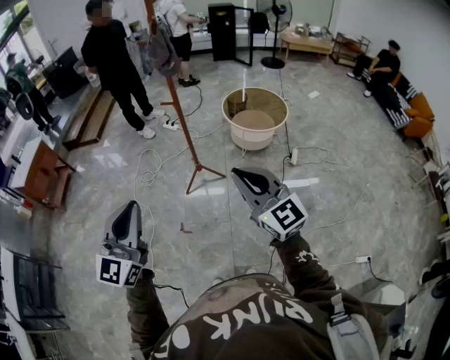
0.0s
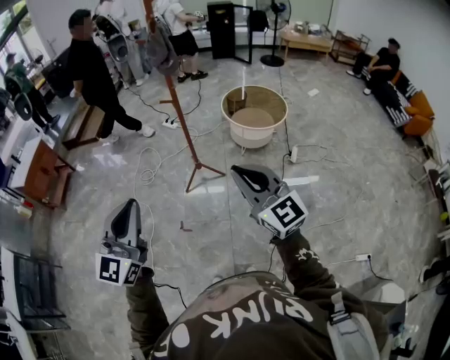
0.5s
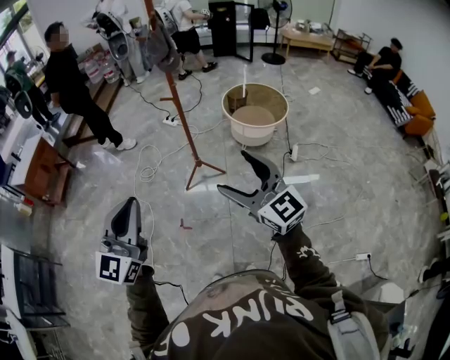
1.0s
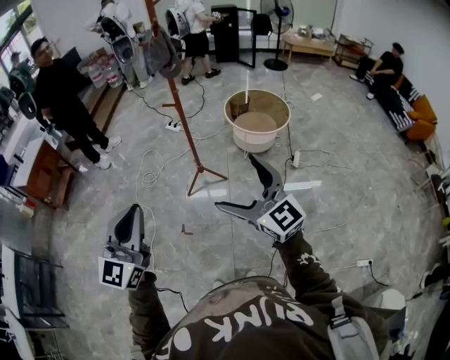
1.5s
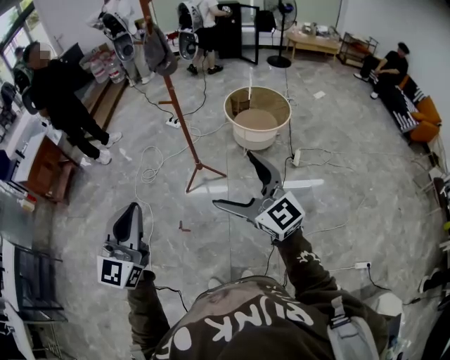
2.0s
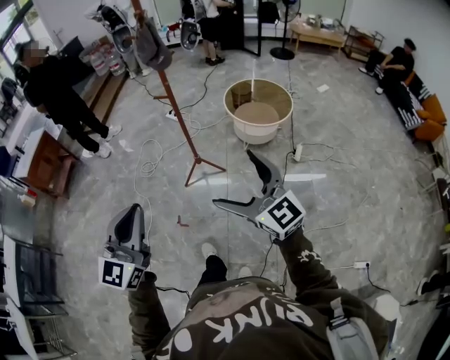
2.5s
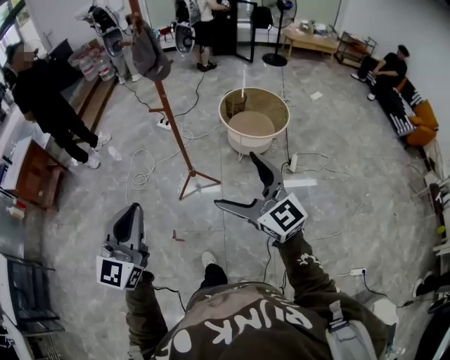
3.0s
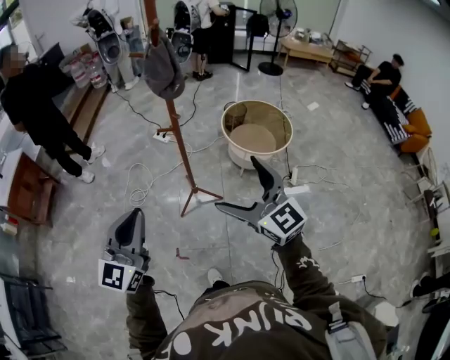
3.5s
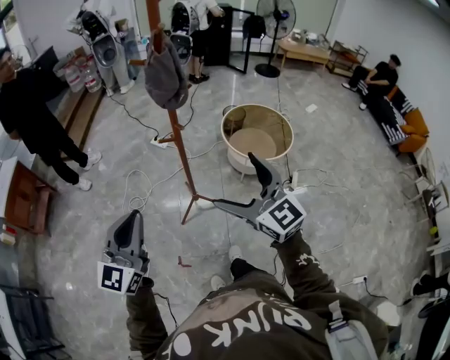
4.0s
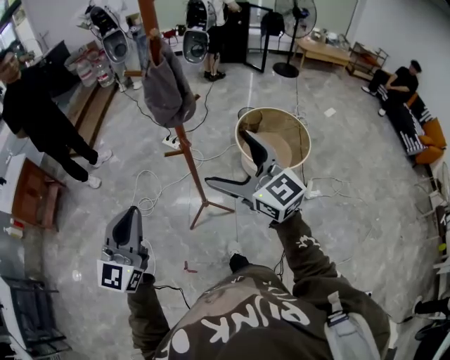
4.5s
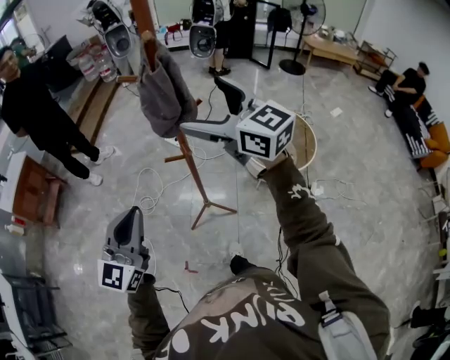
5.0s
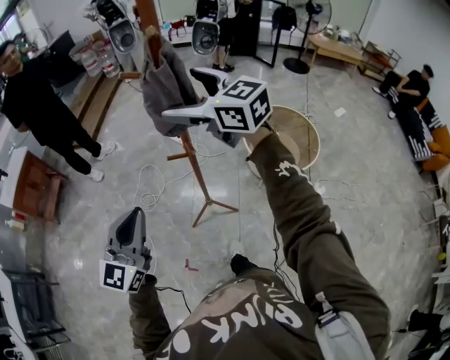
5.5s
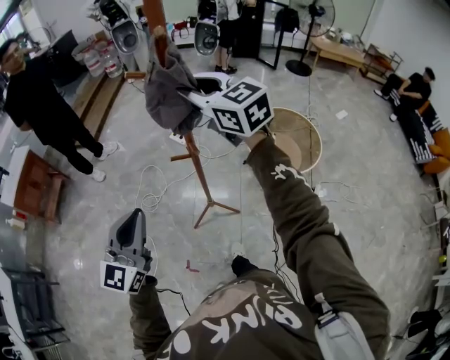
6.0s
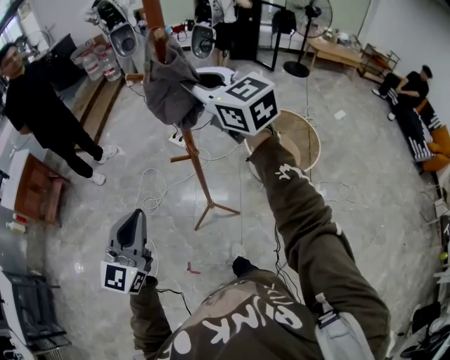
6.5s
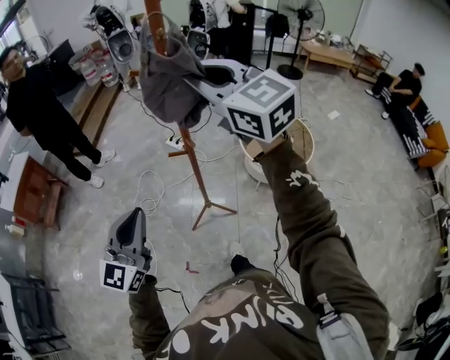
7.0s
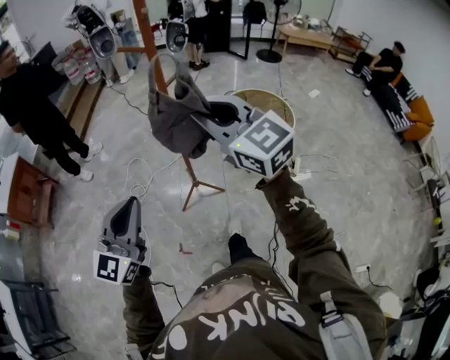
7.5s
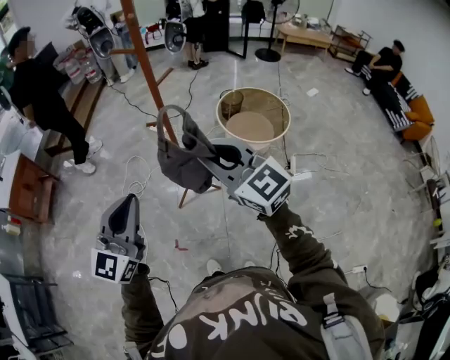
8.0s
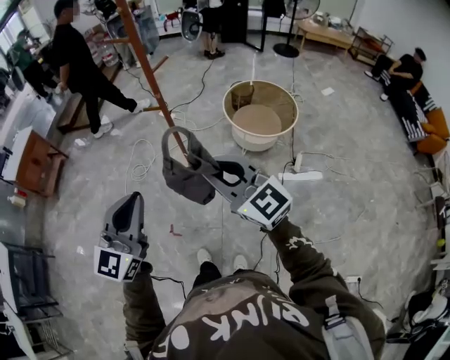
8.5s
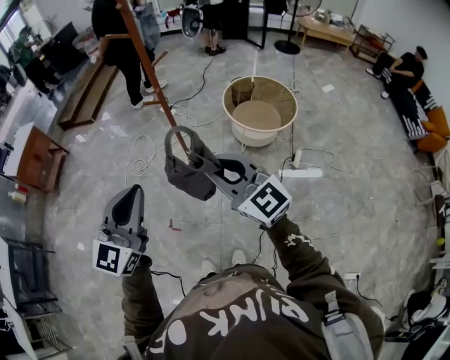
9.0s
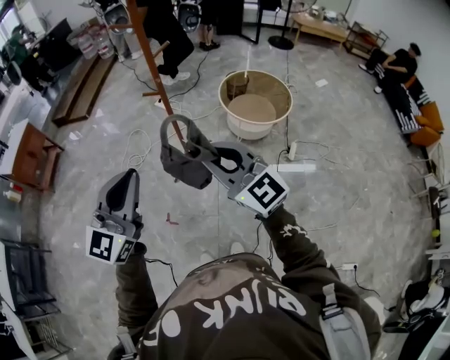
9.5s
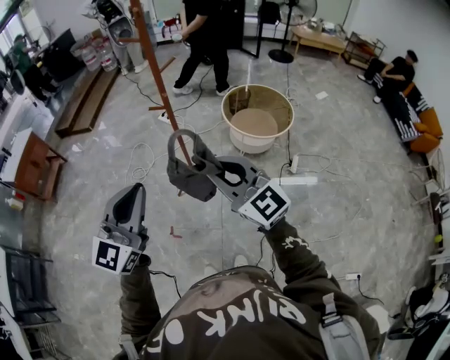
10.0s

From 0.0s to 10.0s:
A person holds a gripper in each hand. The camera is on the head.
From 0.0s to 2.0s: The right gripper opens.
From 2.0s to 4.0s: The two grippers go approximately 35 cm forward.
From 4.0s to 6.0s: The right gripper travels forward by about 35 cm, and closes. Meanwhile the left gripper travels forward by about 15 cm.
From 6.0s to 8.0s: The right gripper travels backward by approximately 35 cm, while the left gripper goes roughly 20 cm backward.
From 8.0s to 10.0s: The right gripper heads backward, covering about 10 cm; the left gripper shifts about 10 cm backward and to the right.

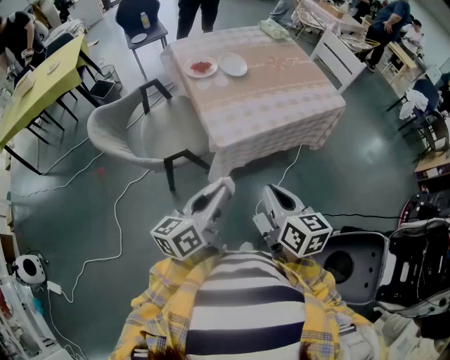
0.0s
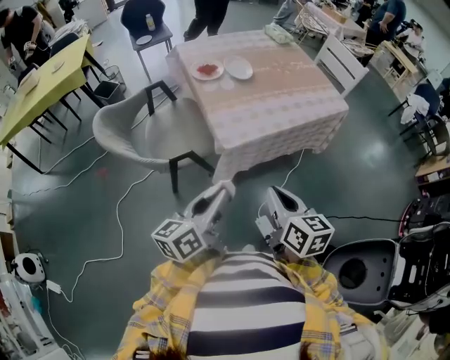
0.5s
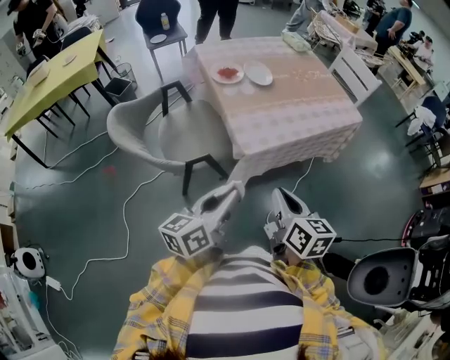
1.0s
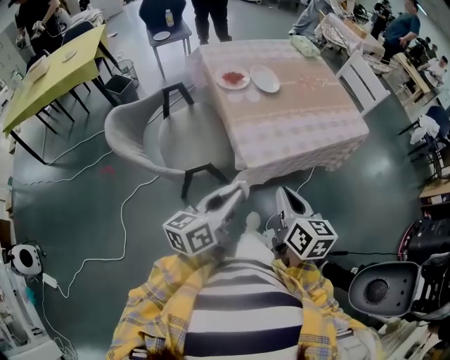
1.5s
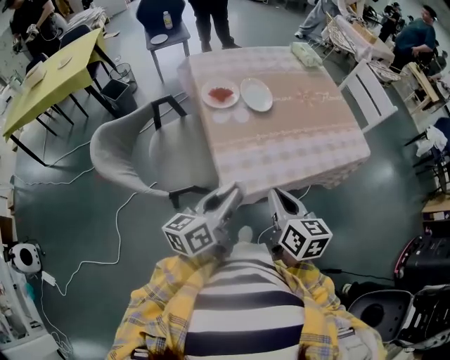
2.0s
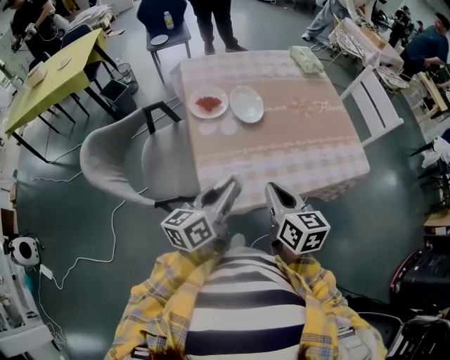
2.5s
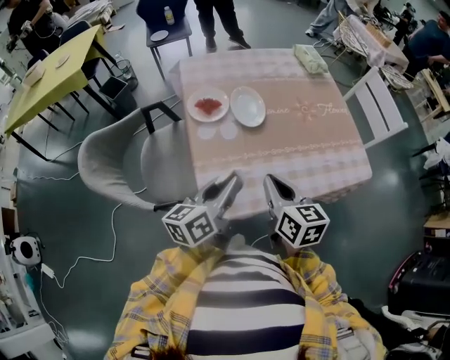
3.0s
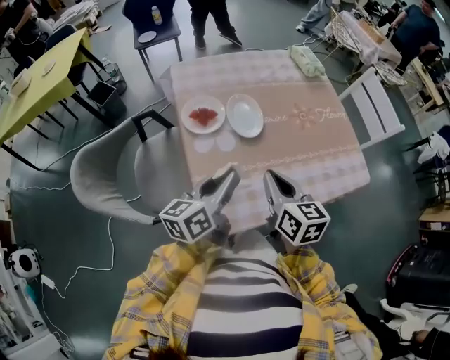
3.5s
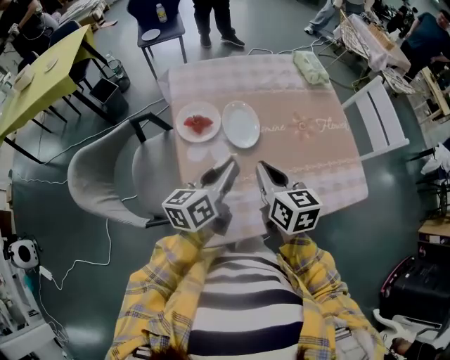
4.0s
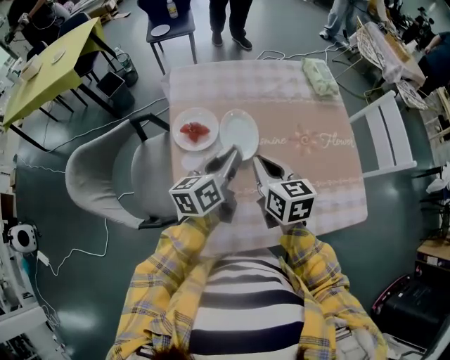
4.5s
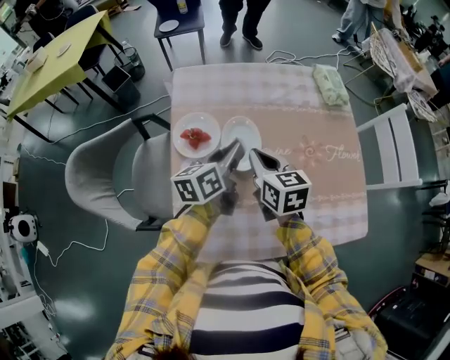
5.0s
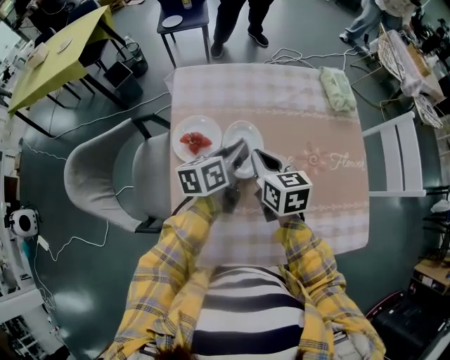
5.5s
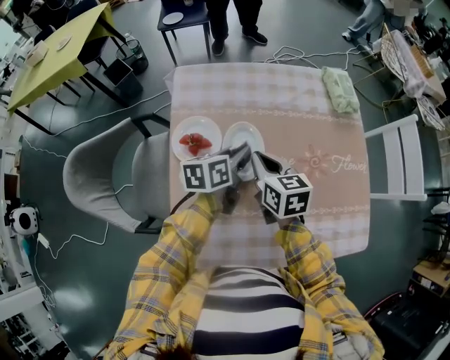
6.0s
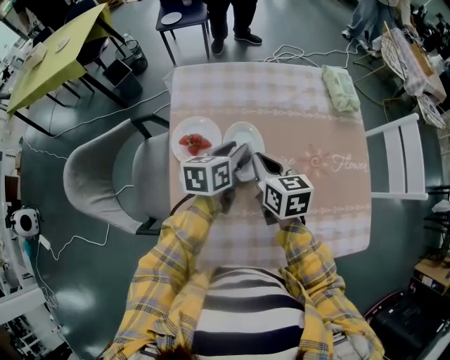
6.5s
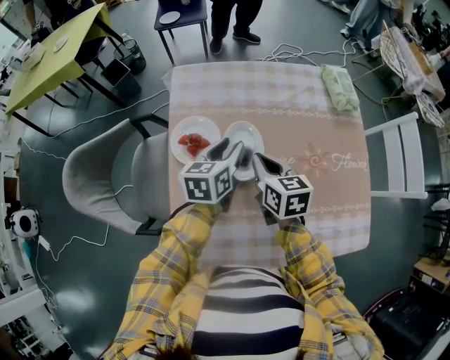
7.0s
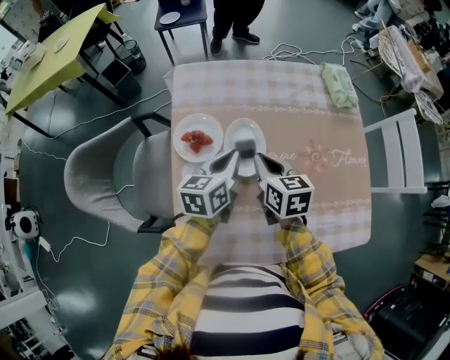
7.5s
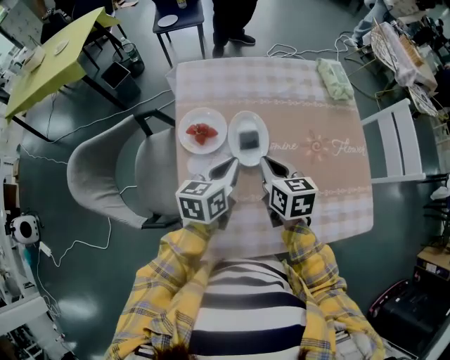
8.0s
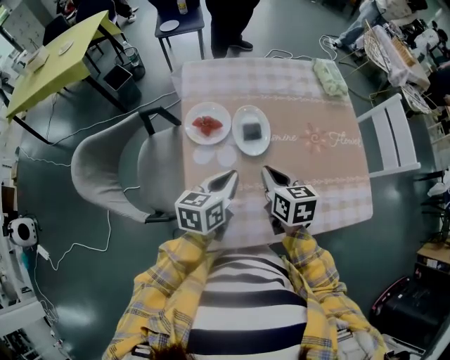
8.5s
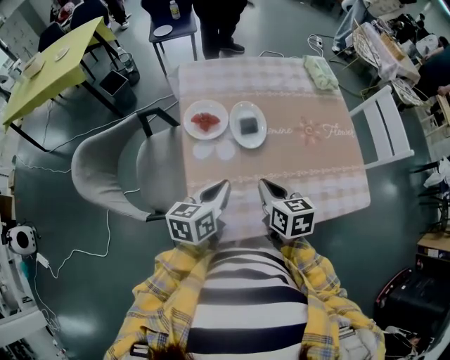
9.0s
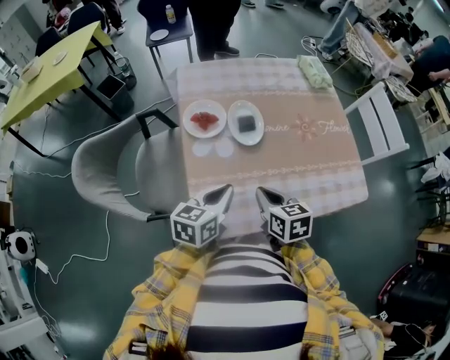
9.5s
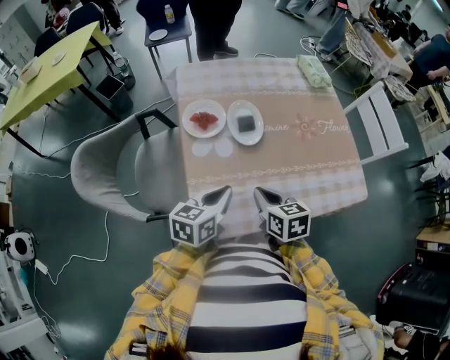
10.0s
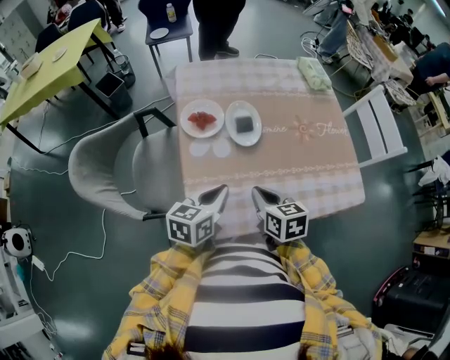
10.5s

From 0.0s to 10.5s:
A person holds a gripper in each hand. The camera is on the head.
From 0.0s to 2.0s: Both grippers travel together forward, approximately 15 cm.
From 2.0s to 4.0s: Both grippers move forward, some 25 cm.
From 4.0s to 6.5s: The grippers both shift forward and downward by approximately 15 cm. The left gripper turns by approximately 20 degrees.
From 6.5s to 8.5s: Both grippers travel together backward, roughly 15 cm. The left gripper closes its fingers.
From 8.5s to 10.5s: Both grippers travel together backward, about 10 cm.

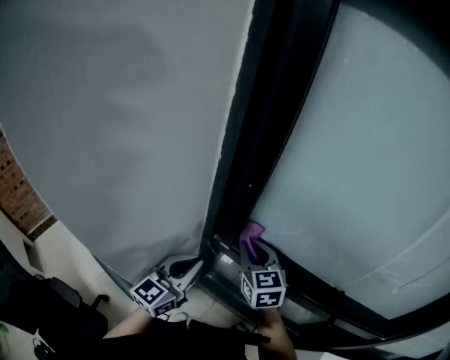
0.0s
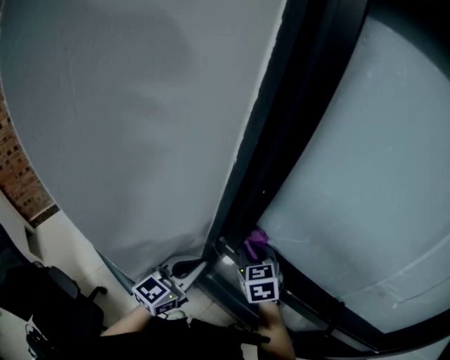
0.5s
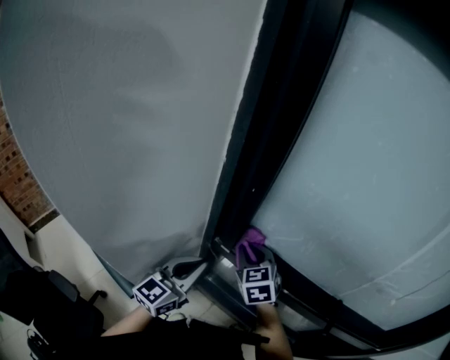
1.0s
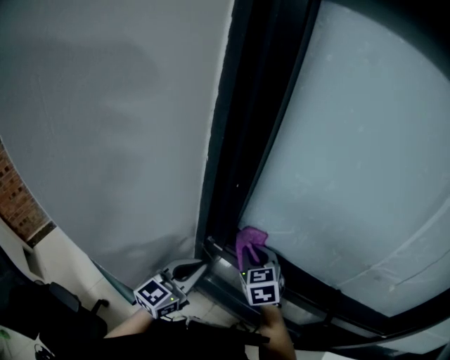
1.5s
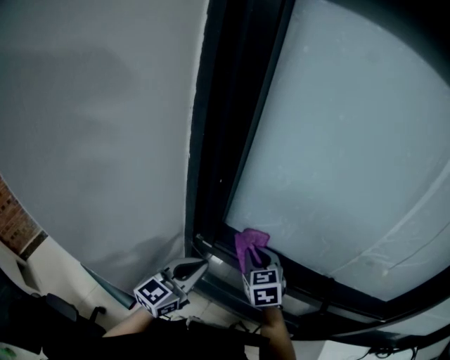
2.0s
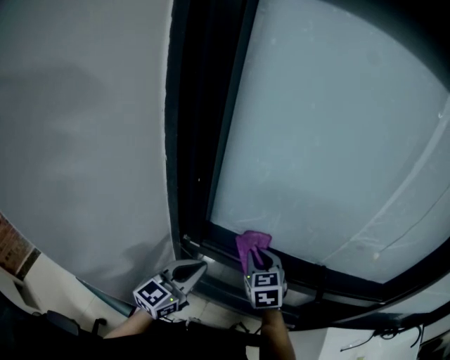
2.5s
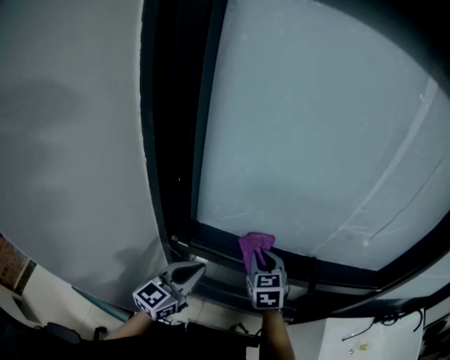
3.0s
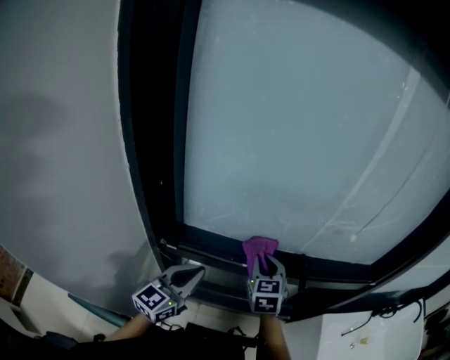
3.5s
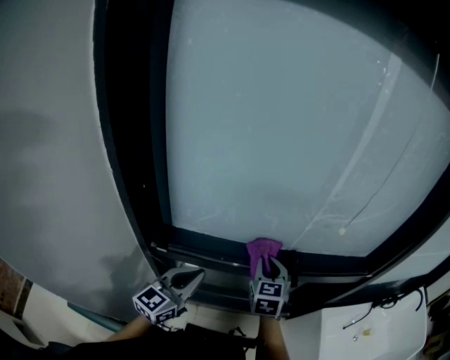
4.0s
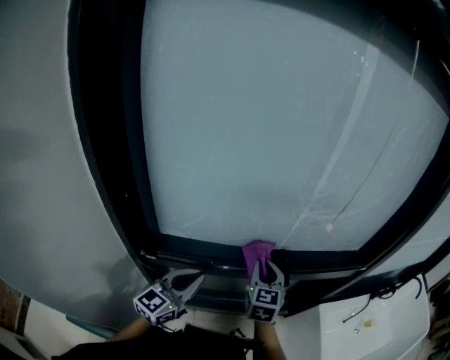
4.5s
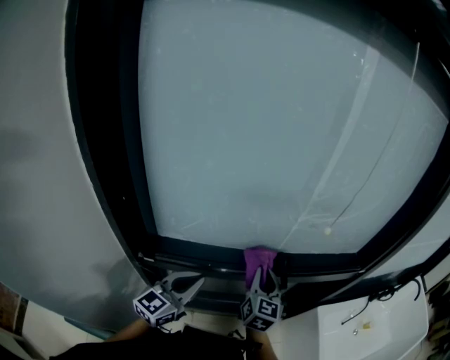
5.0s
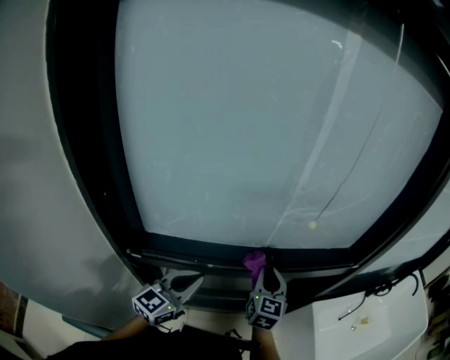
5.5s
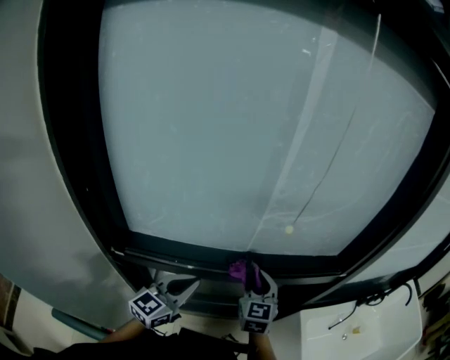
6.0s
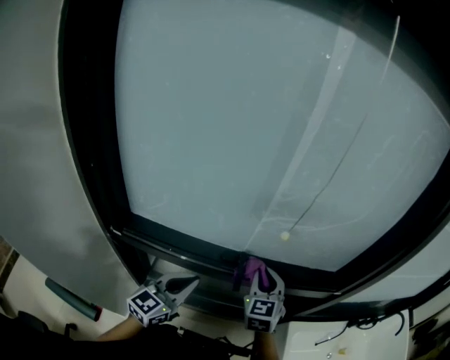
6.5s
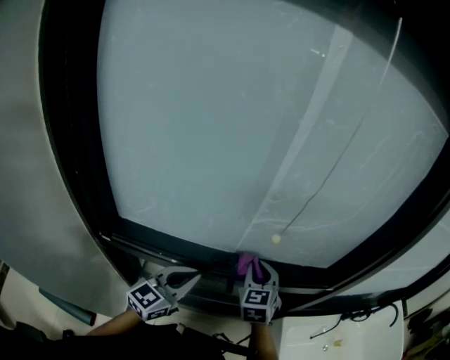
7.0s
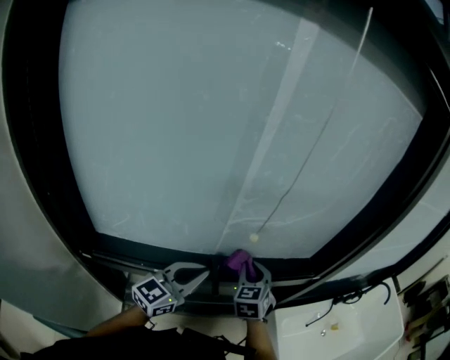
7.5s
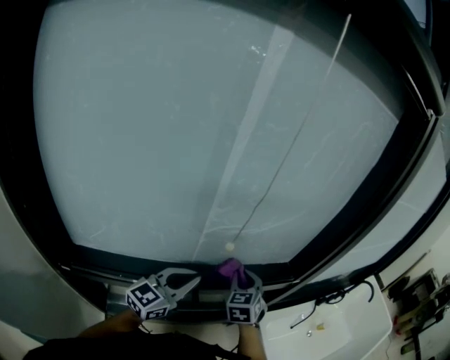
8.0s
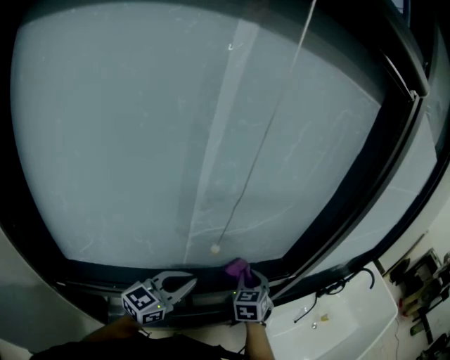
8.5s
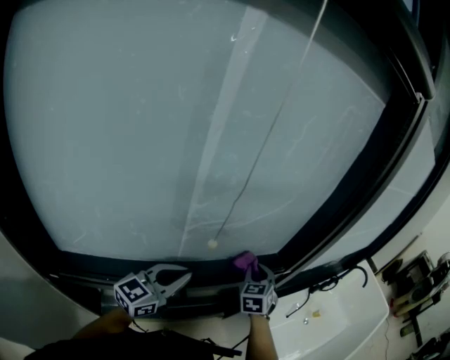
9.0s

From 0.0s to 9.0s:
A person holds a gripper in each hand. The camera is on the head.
From 0.0s to 2.0s: The two grippers go approximately 5 cm to the right.
From 2.0s to 4.5s: The left gripper ends up roughly 15 cm from where it was, and changes its angle by some 20 degrees. The right gripper shifts by some 20 cm, and rotates approximately 40 degrees.
From 4.5s to 7.0s: The grippers both shift to the right and forward by roughly 15 cm.
From 7.0s to 9.0s: The right gripper ends up about 20 cm from where it was, and changes its angle by roughly 30 degrees. The left gripper shifts by roughly 10 cm, and rotates roughly 20 degrees.
